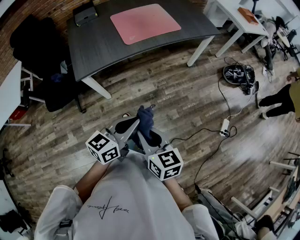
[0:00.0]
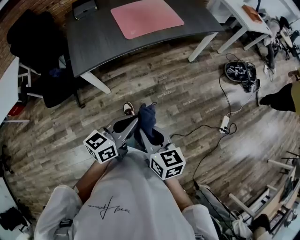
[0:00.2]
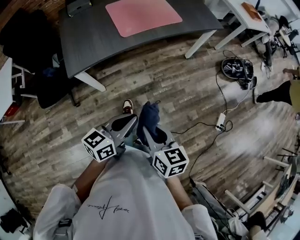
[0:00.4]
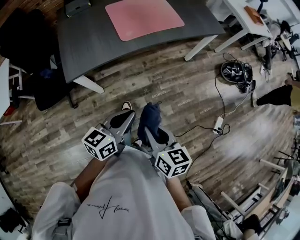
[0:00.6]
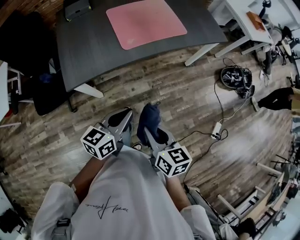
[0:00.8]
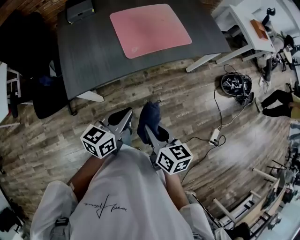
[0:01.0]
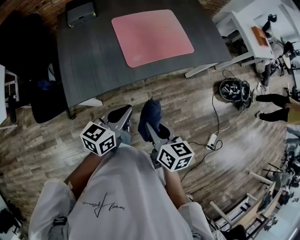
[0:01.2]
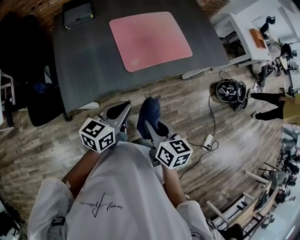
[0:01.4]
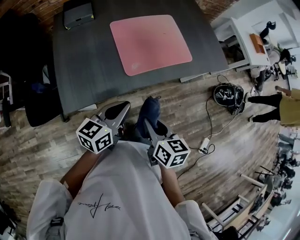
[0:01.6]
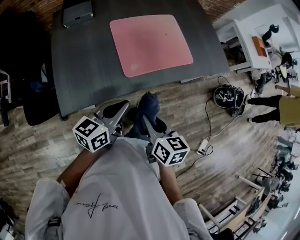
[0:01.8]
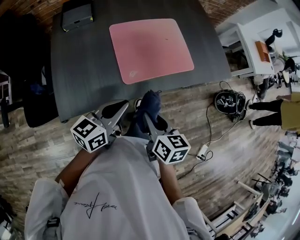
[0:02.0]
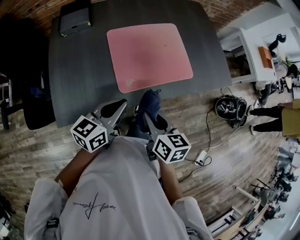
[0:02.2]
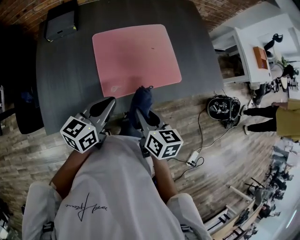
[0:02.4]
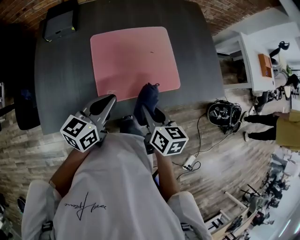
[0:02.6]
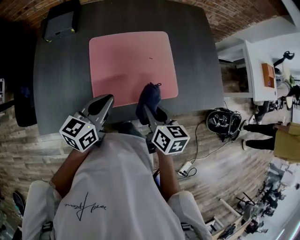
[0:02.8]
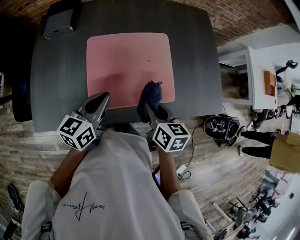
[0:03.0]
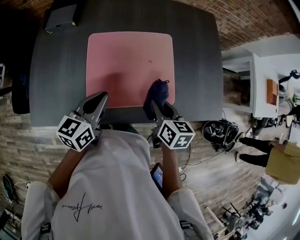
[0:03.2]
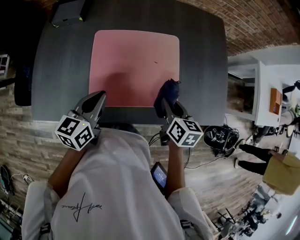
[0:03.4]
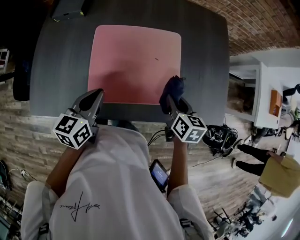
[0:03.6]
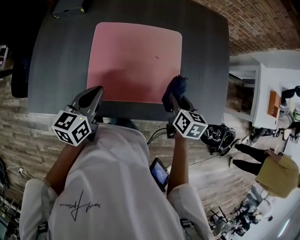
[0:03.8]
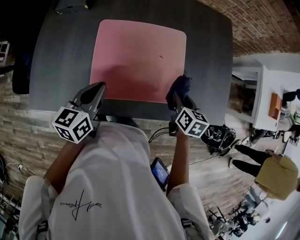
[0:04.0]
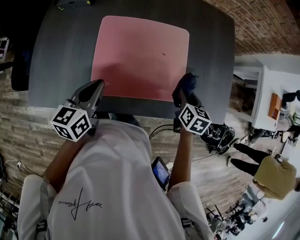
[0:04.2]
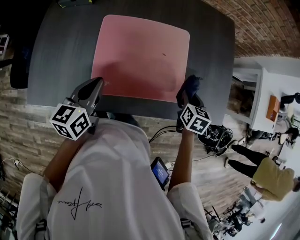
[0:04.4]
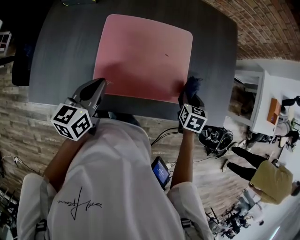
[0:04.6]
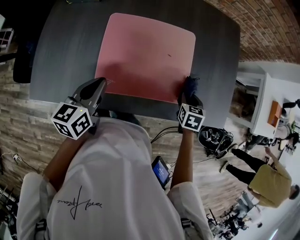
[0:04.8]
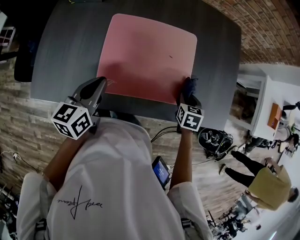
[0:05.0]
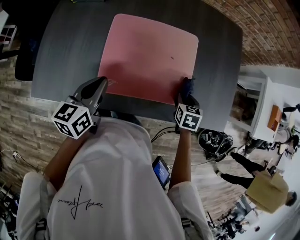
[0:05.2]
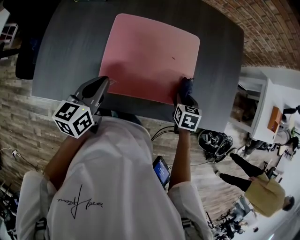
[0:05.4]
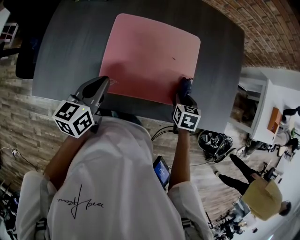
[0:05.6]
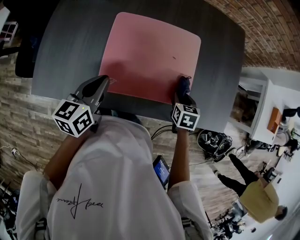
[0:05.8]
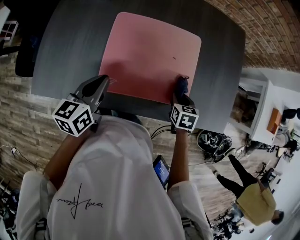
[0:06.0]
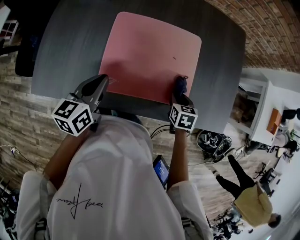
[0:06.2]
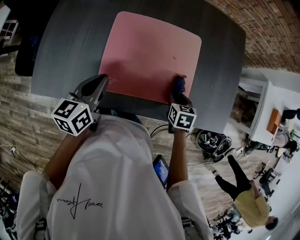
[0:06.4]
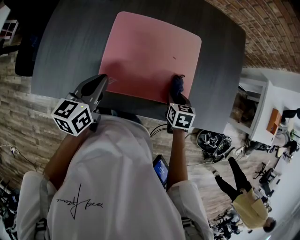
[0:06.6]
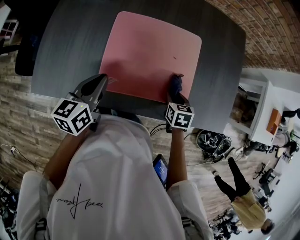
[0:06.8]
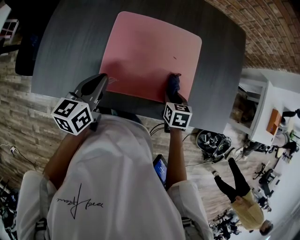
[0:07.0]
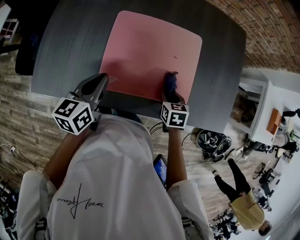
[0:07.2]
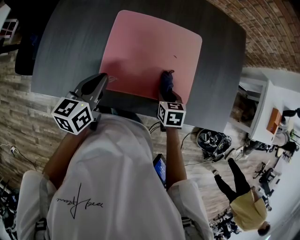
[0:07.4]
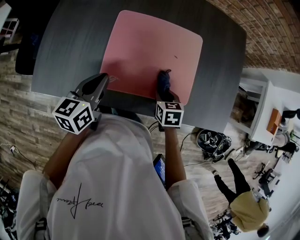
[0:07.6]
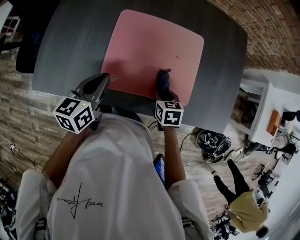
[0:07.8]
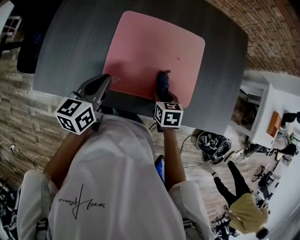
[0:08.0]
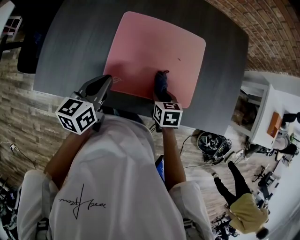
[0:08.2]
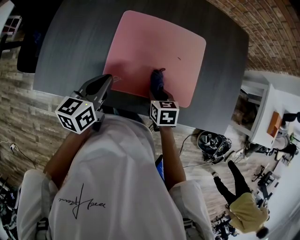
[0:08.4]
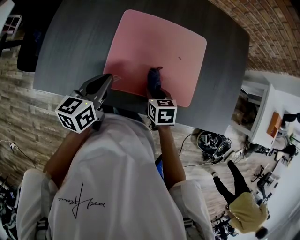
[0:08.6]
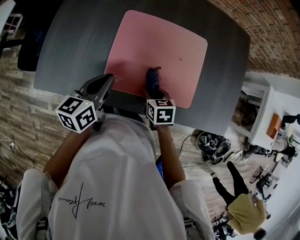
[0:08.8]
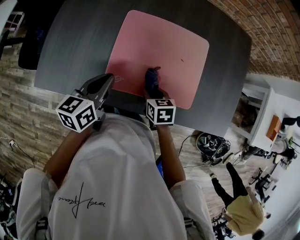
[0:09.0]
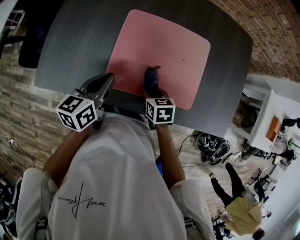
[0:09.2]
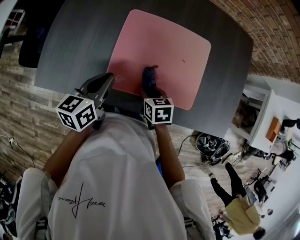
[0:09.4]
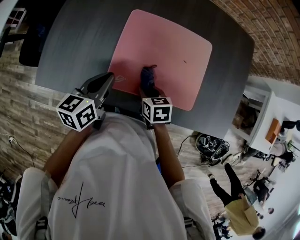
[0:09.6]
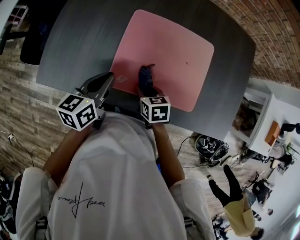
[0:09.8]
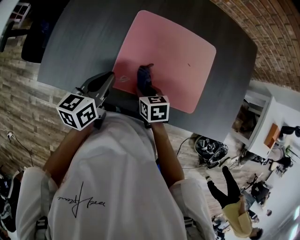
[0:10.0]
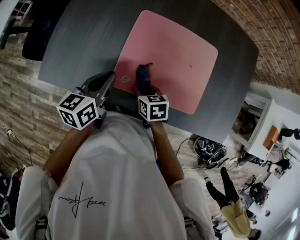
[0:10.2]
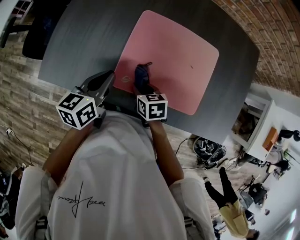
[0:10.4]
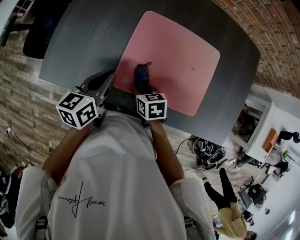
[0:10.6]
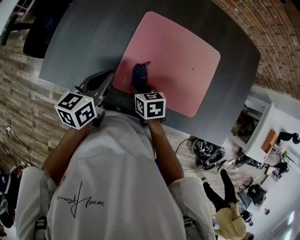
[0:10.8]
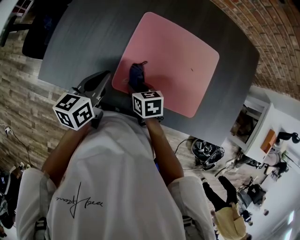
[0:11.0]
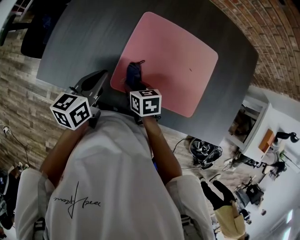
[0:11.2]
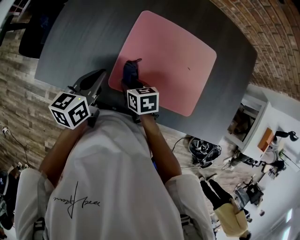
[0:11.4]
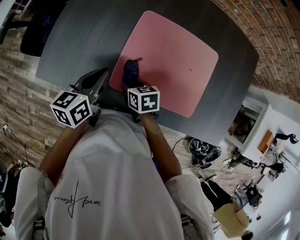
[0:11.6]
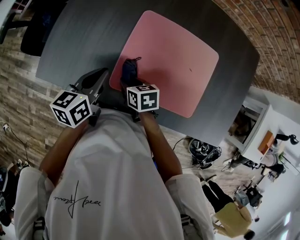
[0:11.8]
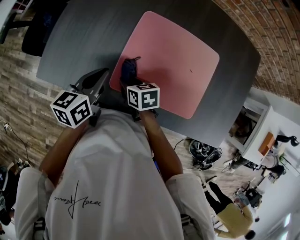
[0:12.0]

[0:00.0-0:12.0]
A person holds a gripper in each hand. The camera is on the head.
0.0 to 1.6 s: Both grippers travel together forward, roughly 35 cm.
1.6 to 3.0 s: The left gripper moves forward, some 25 cm, and changes its angle by some 20 degrees. The right gripper heads forward and to the right, covering approximately 35 cm.
3.0 to 4.4 s: The right gripper goes roughly 20 cm to the right, forward and downward, and swivels approximately 30 degrees. The left gripper is displaced to the left by some 5 cm.
4.4 to 6.0 s: The right gripper heads to the left and downward, covering roughly 10 cm.
6.0 to 7.6 s: The right gripper travels to the left by approximately 10 cm.
7.6 to 9.0 s: The right gripper moves to the left, roughly 10 cm.
9.0 to 10.4 s: The right gripper moves to the left, about 10 cm.
10.4 to 12.0 s: The right gripper goes about 5 cm to the left.

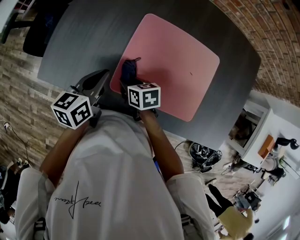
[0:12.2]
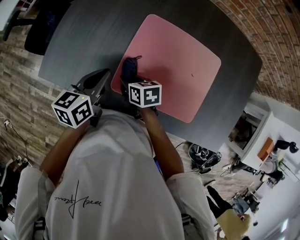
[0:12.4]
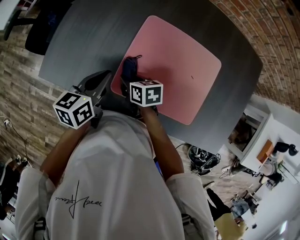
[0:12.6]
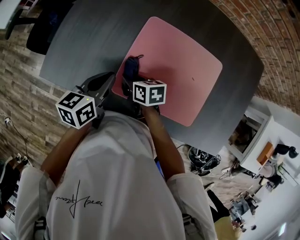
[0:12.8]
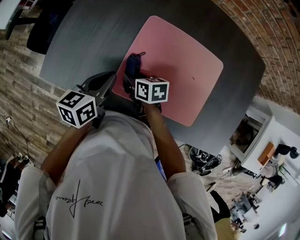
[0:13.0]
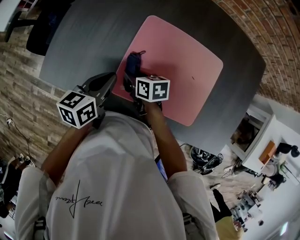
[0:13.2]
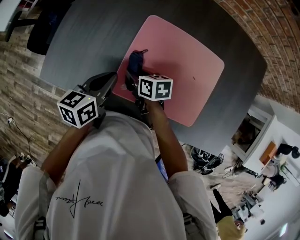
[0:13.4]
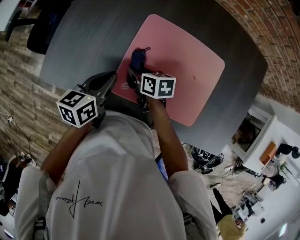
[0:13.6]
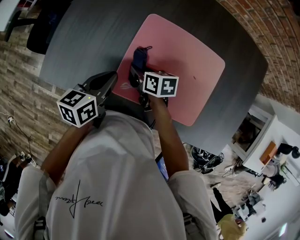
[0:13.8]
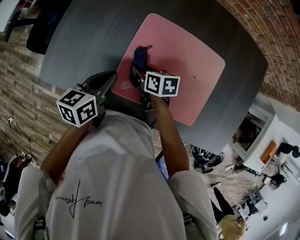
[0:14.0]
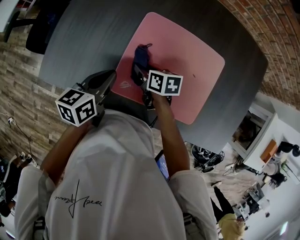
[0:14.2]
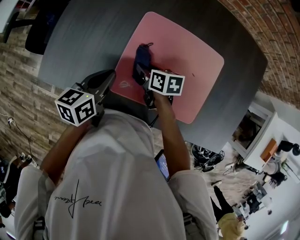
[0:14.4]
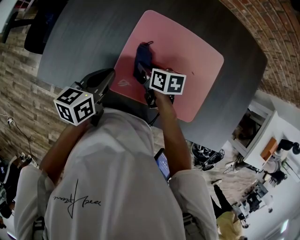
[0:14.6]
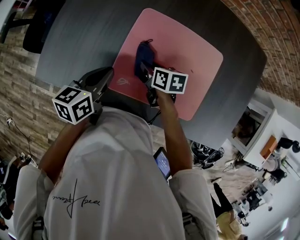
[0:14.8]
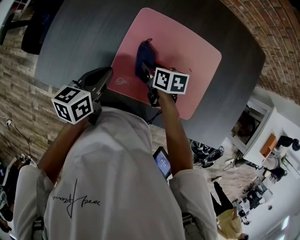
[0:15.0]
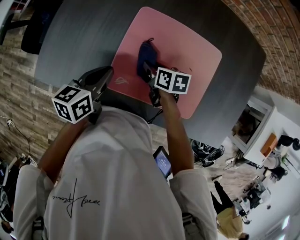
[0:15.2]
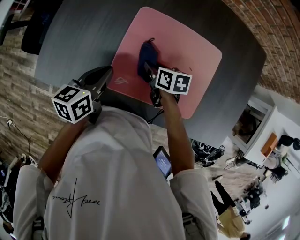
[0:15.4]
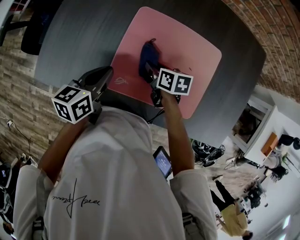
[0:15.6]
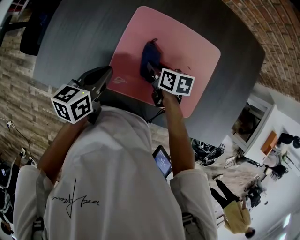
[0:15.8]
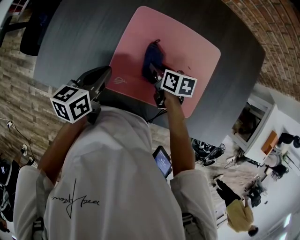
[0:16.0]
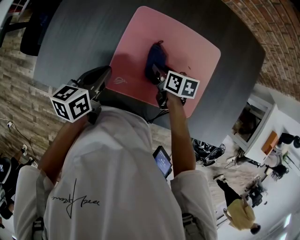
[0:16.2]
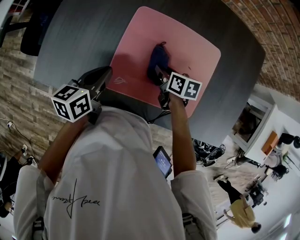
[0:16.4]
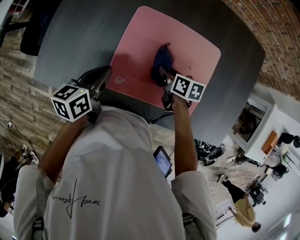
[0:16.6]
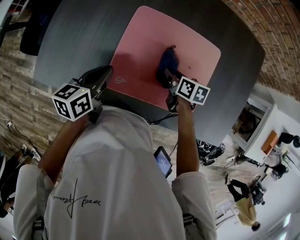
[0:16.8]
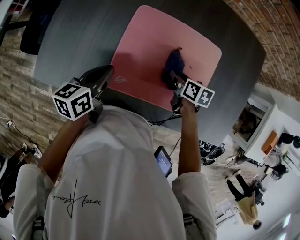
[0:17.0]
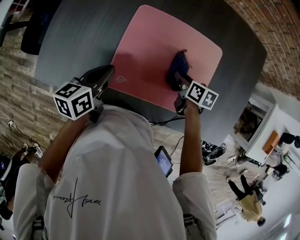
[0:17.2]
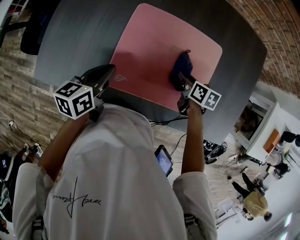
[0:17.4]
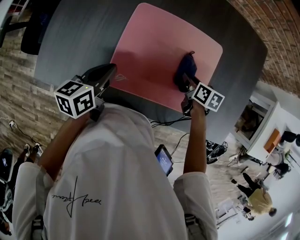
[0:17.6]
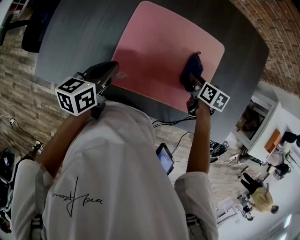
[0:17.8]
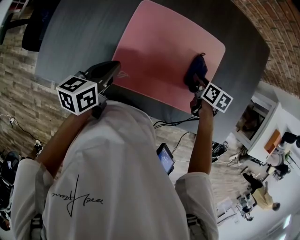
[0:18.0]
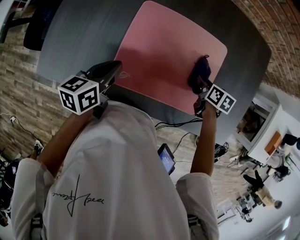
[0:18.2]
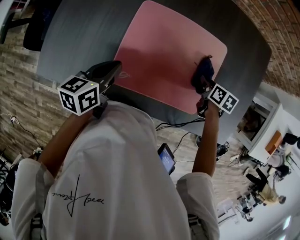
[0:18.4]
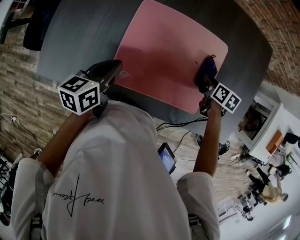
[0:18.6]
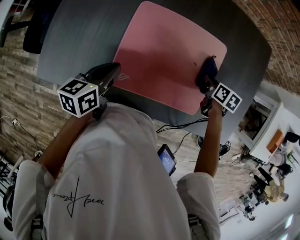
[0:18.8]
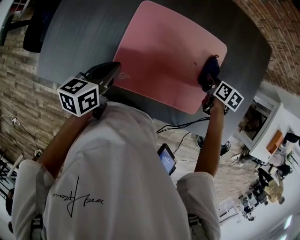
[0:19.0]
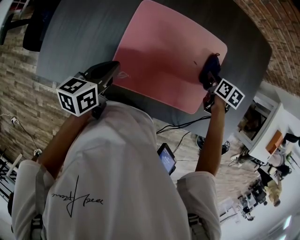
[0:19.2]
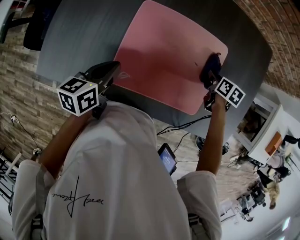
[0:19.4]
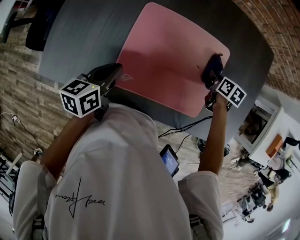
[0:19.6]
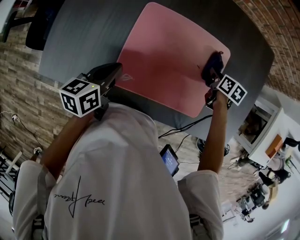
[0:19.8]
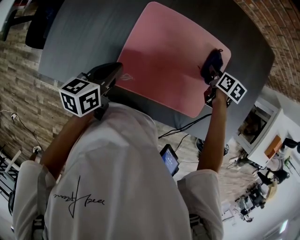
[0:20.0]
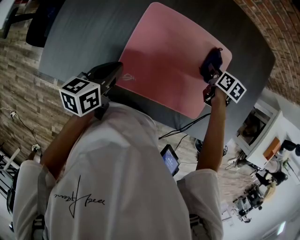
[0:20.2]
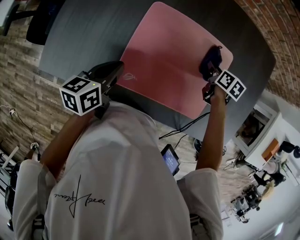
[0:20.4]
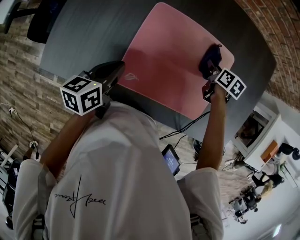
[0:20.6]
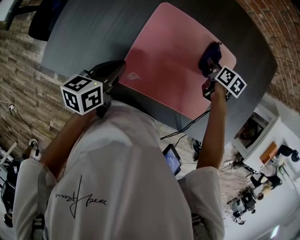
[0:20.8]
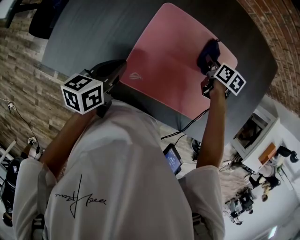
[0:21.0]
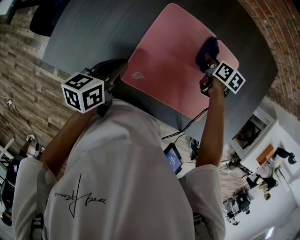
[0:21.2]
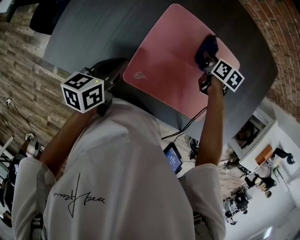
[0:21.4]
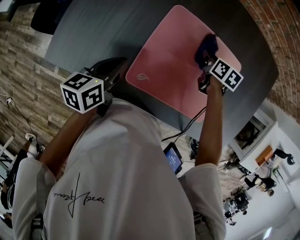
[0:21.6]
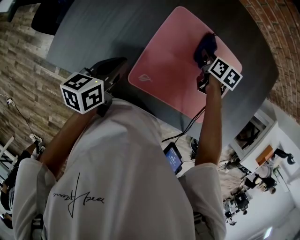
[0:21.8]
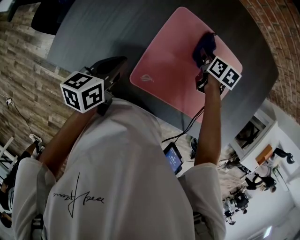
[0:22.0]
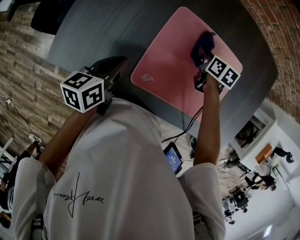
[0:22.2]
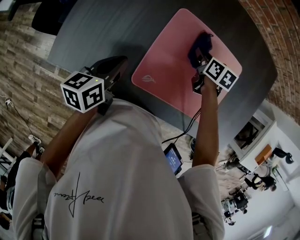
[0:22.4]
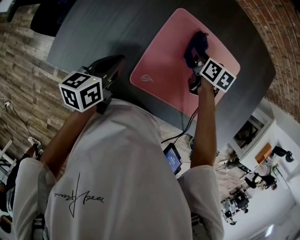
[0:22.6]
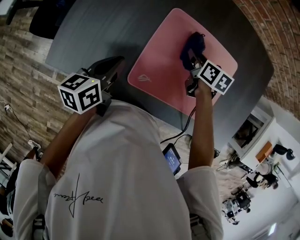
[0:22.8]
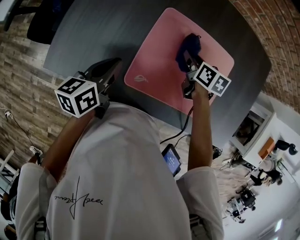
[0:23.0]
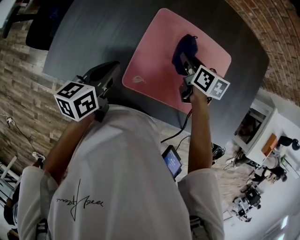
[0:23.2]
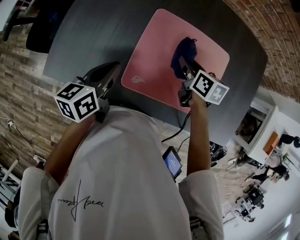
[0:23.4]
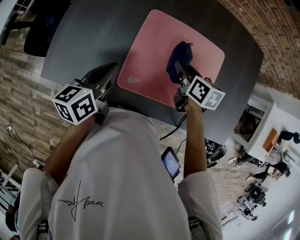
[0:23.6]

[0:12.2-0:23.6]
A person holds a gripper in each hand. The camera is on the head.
12.2 to 13.6 s: The right gripper goes roughly 5 cm forward.
13.6 to 15.0 s: The right gripper goes some 10 cm to the right.
15.0 to 16.4 s: The right gripper is displaced to the right by roughly 5 cm.
16.4 to 17.8 s: The right gripper shifts approximately 15 cm to the right.
17.8 to 19.4 s: The right gripper shifts some 10 cm to the right and forward.
19.4 to 20.8 s: The right gripper travels to the left and forward by approximately 10 cm.
20.8 to 22.2 s: The left gripper heads to the left, covering about 5 cm; the right gripper shifts roughly 15 cm to the left.
22.2 to 23.6 s: The left gripper shifts approximately 5 cm upward; the right gripper moves backward and upward, some 15 cm.

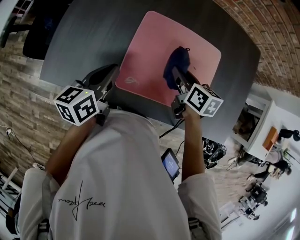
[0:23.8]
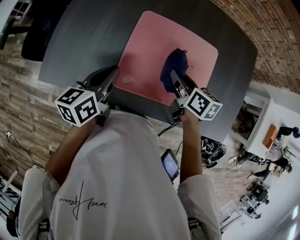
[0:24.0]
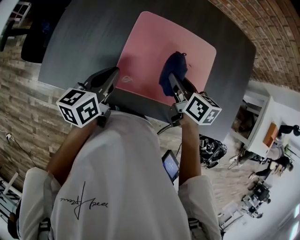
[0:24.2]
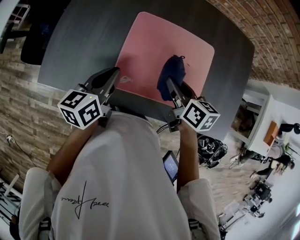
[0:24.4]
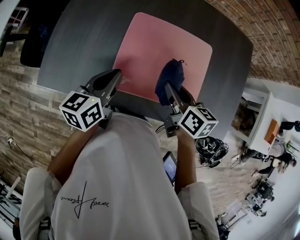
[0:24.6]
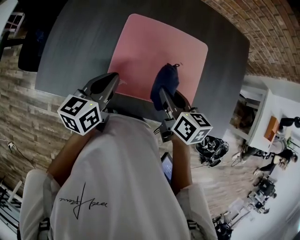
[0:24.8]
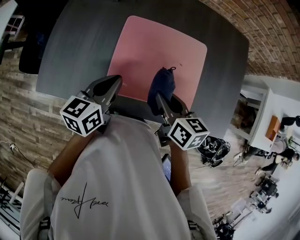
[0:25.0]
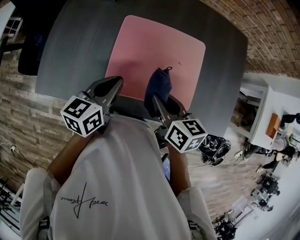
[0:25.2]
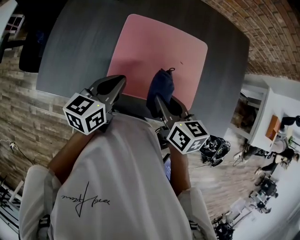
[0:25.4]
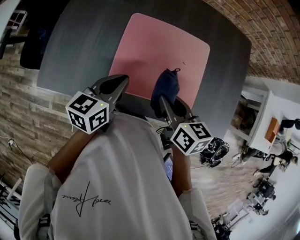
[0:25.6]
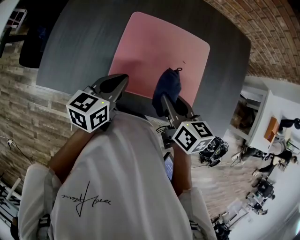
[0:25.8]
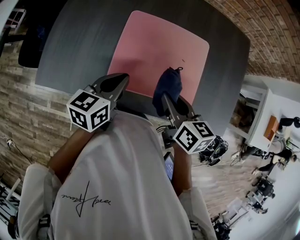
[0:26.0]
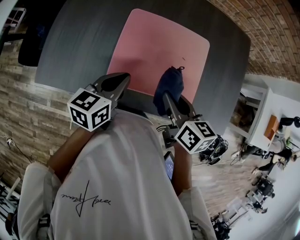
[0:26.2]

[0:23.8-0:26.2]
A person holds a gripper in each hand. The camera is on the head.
23.8 to 25.0 s: The left gripper goes about 5 cm to the right; the right gripper moves backward and upward, approximately 10 cm.
25.0 to 26.2 s: The grippers make only small movements.
